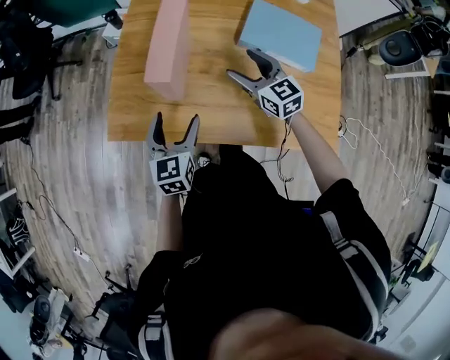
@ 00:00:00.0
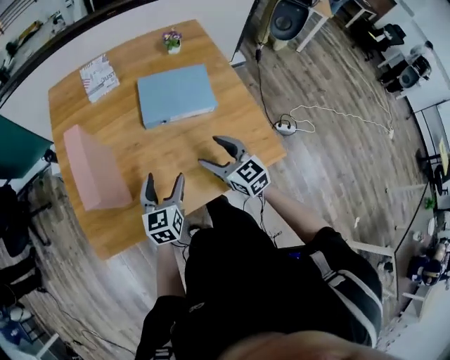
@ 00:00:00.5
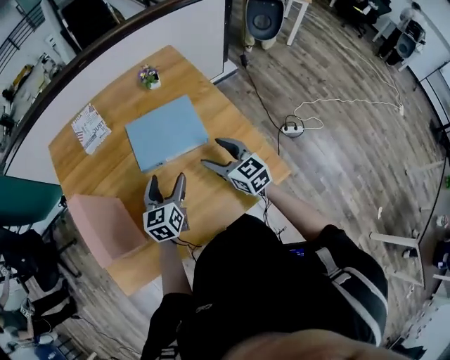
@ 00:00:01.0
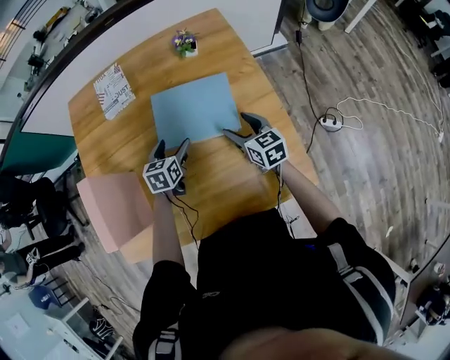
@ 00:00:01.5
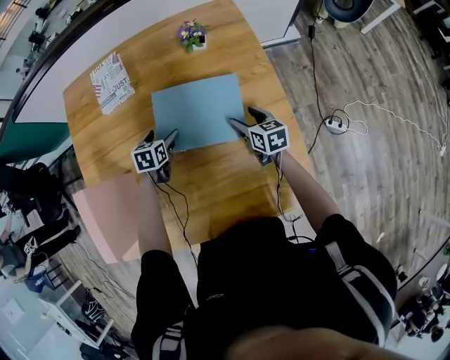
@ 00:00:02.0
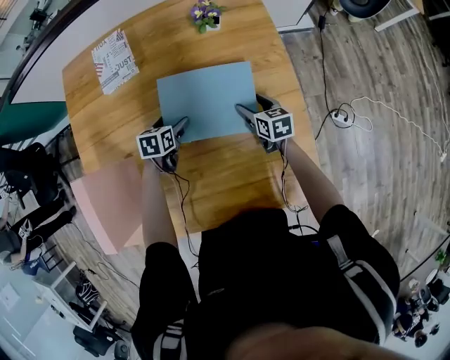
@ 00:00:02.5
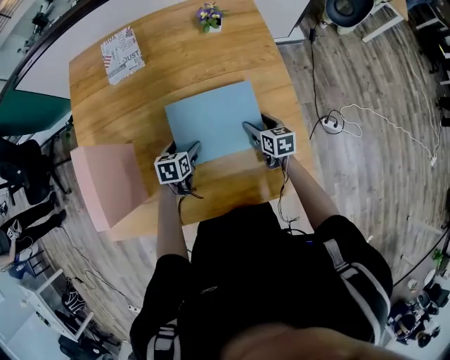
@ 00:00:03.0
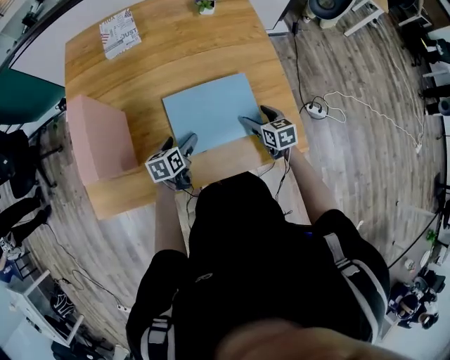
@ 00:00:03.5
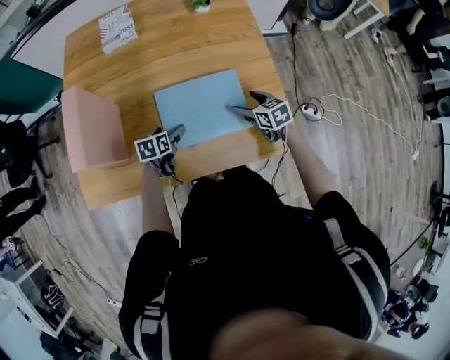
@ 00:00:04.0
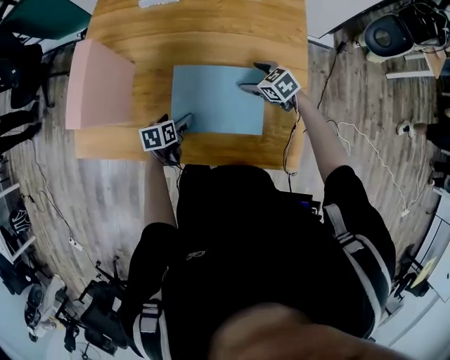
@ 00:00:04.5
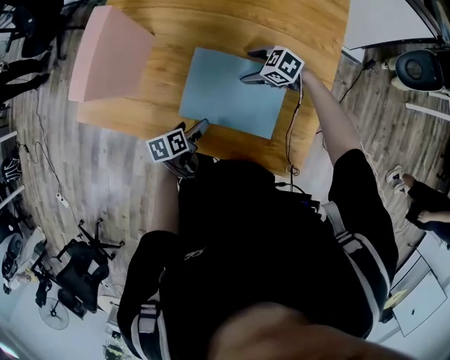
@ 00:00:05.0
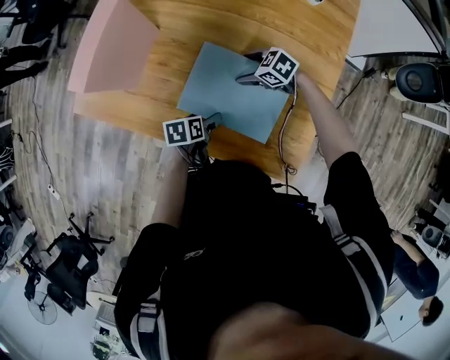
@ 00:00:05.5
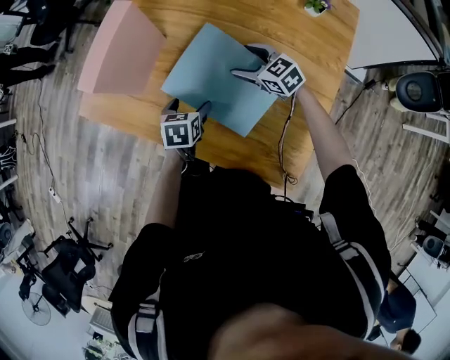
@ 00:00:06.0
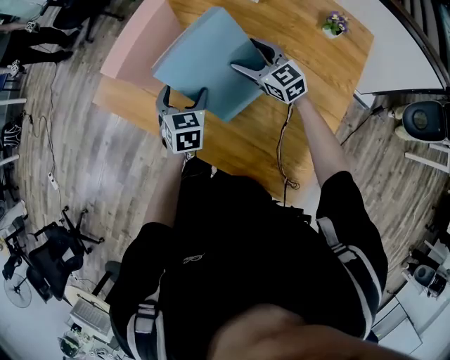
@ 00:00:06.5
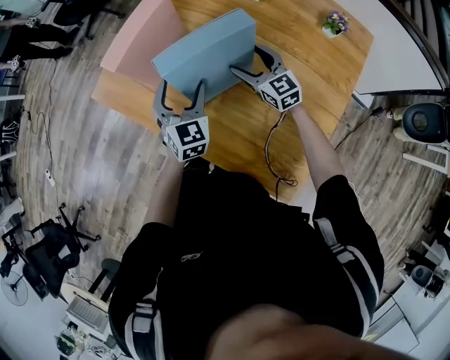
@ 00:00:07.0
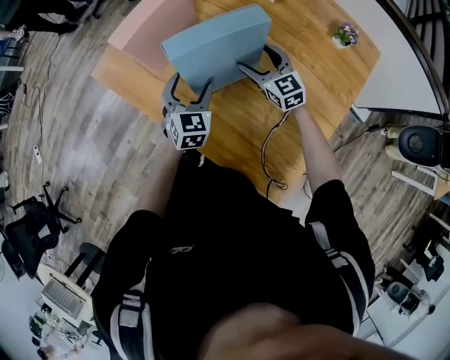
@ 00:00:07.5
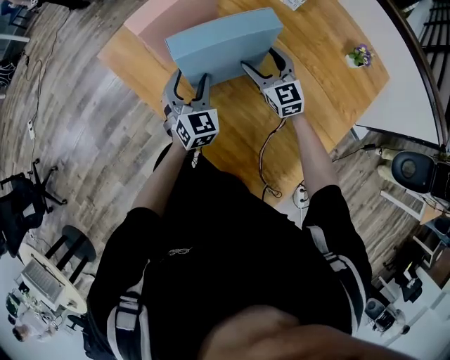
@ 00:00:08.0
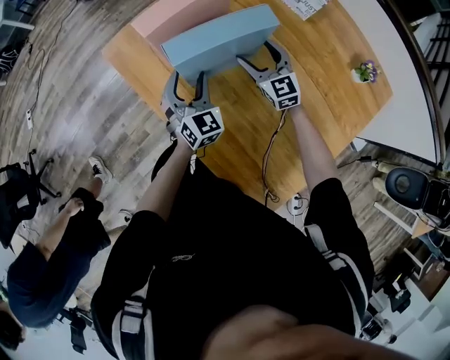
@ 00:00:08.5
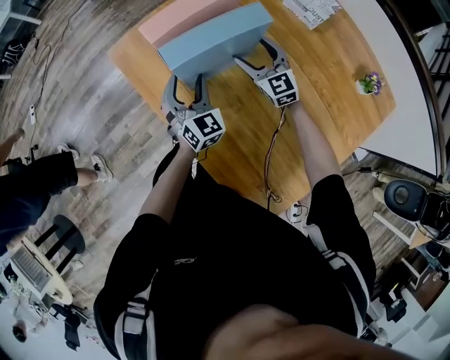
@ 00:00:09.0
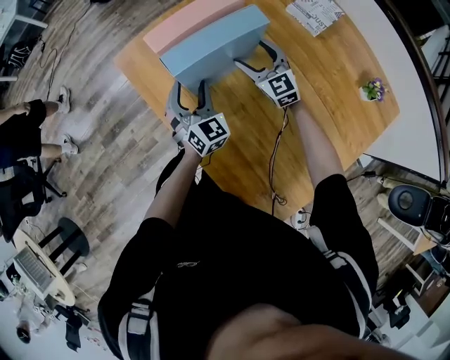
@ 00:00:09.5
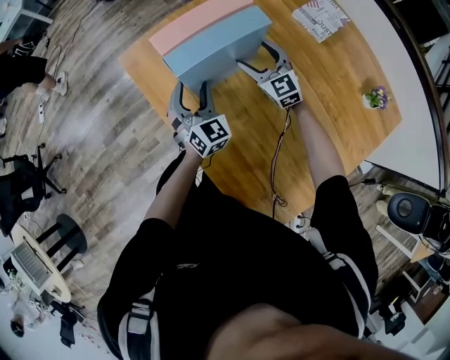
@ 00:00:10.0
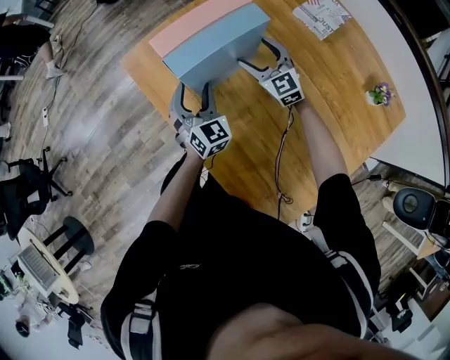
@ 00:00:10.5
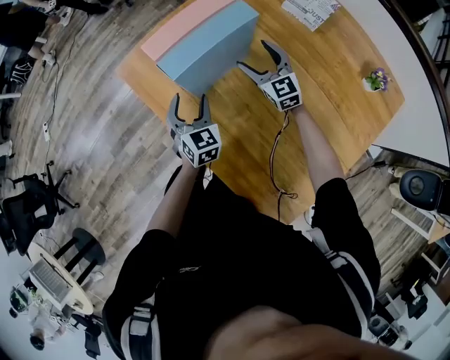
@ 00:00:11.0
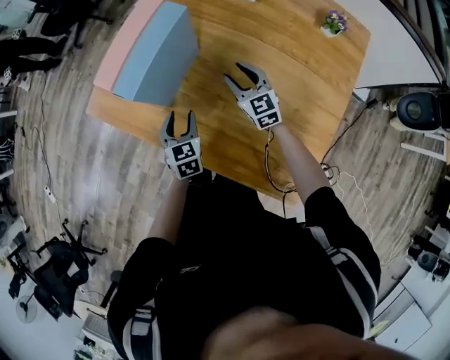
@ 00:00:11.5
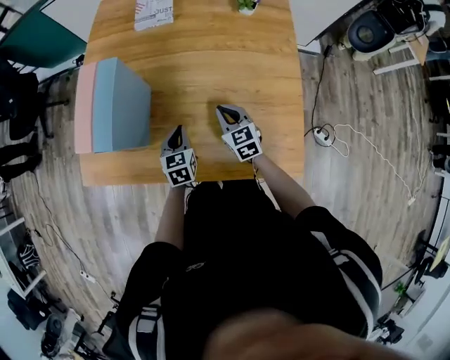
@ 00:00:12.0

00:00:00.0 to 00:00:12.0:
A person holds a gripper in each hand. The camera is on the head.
00:00:00.0 to 00:00:02.0: The right gripper shifts by about 40 cm, and turns by roughly 40 degrees, while the left gripper shifts by roughly 50 cm, and points its fingers roughly 30 degrees further downward.
00:00:02.0 to 00:00:04.0: Both grippers travel together backward, some 20 cm. The right gripper swivels roughly 20 degrees.
00:00:04.0 to 00:00:06.0: The right gripper goes downward and returns, approximately 5 cm each way, and swivels roughly 60 degrees, while the left gripper turns by some 30 degrees.
00:00:06.0 to 00:00:08.0: The right gripper heads to the left and forward, covering some 10 cm, and changes its angle by approximately 20 degrees, while the left gripper shifts roughly 10 cm upward, to the left and forward, and tilts its fingers about 30 degrees upward.
00:00:08.0 to 00:00:10.0: The left gripper travels forward by some 5 cm. The right gripper travels forward by about 15 cm.
00:00:10.0 to 00:00:12.0: The right gripper shifts by some 30 cm, turns by some 70 degrees, and closes its fingers. Meanwhile the left gripper ends up roughly 15 cm from where it was, rotates roughly 60 degrees, and closes.

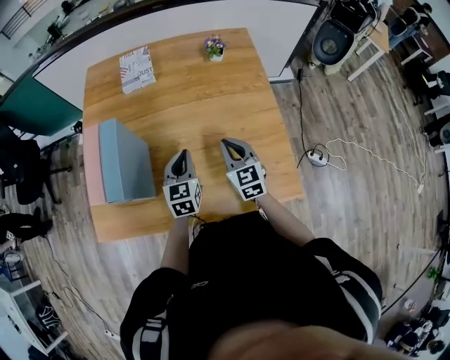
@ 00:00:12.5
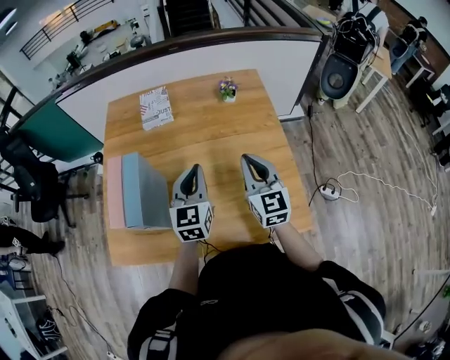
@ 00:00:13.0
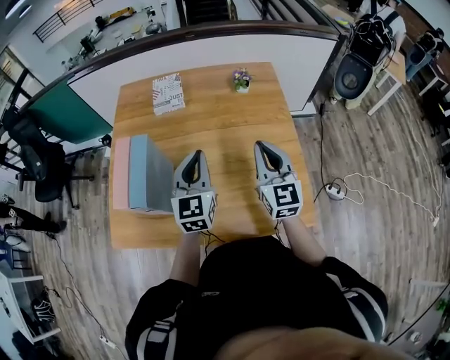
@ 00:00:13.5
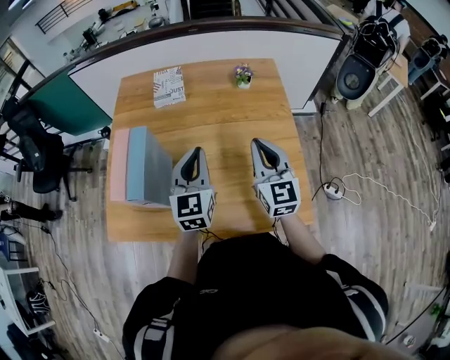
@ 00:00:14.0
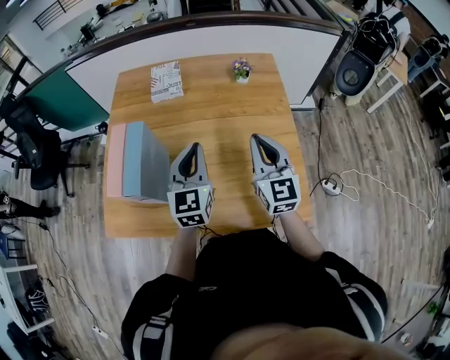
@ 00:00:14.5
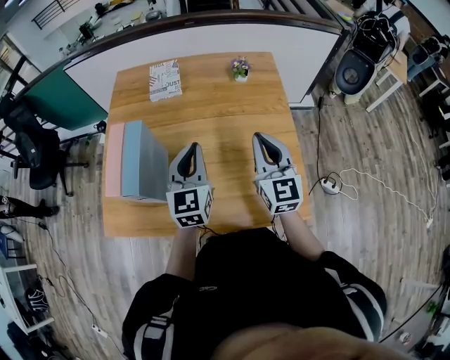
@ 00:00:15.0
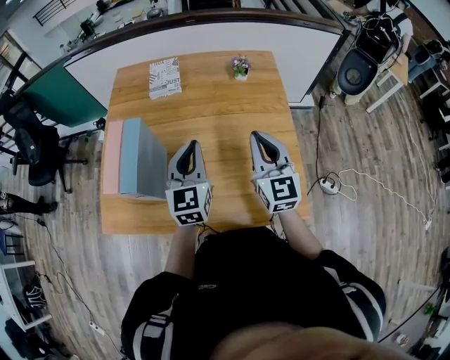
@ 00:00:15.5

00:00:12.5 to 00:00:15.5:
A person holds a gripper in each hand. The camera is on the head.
00:00:12.5 to 00:00:14.0: The two grippers go roughly 15 cm upward.
00:00:14.0 to 00:00:15.5: Both grippers stay put.

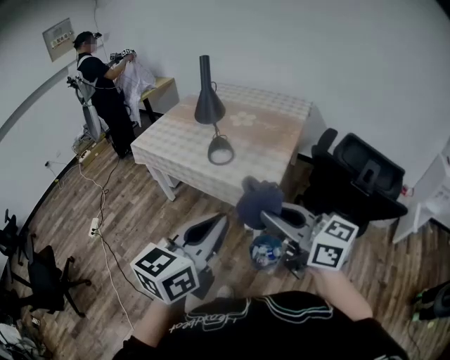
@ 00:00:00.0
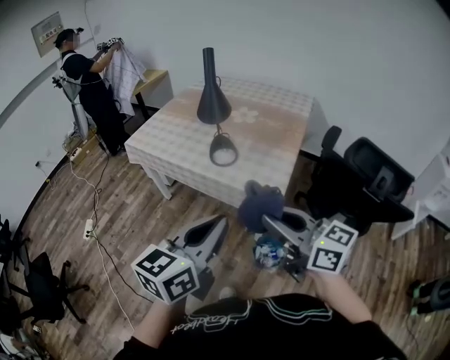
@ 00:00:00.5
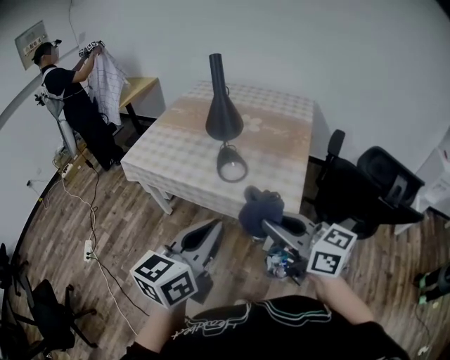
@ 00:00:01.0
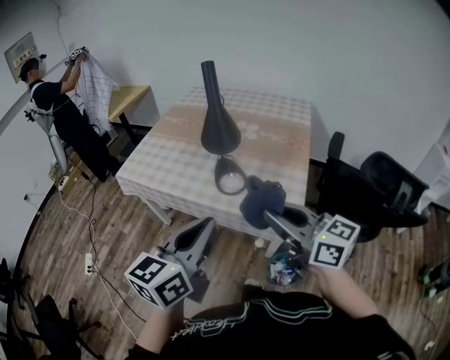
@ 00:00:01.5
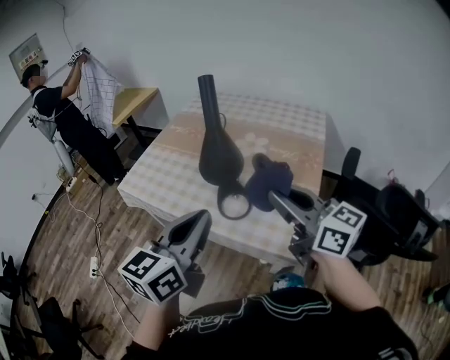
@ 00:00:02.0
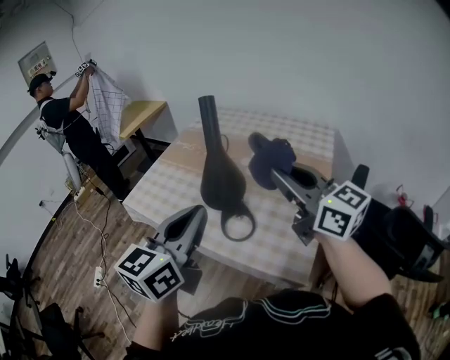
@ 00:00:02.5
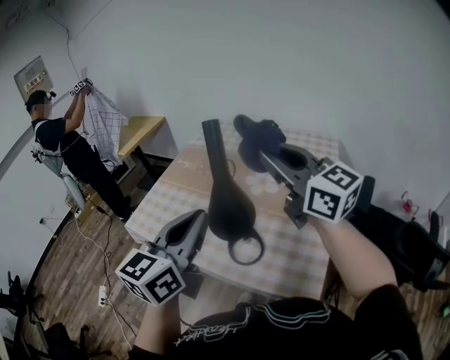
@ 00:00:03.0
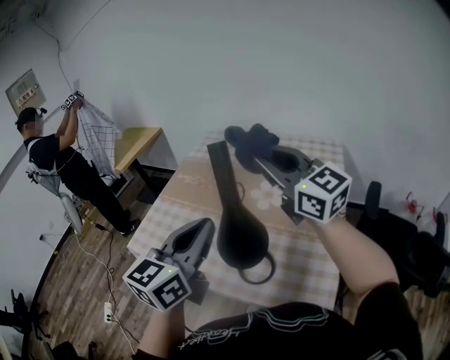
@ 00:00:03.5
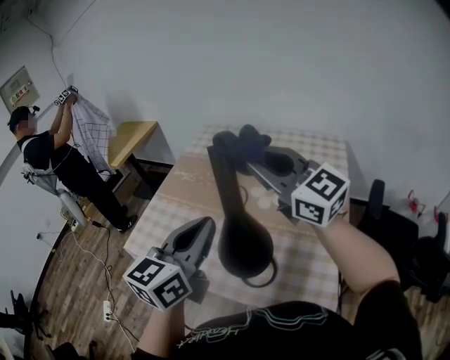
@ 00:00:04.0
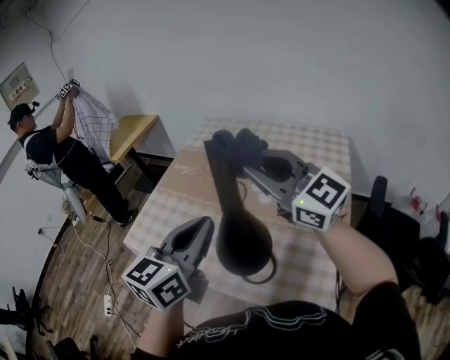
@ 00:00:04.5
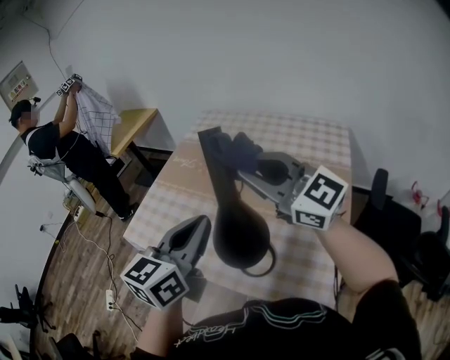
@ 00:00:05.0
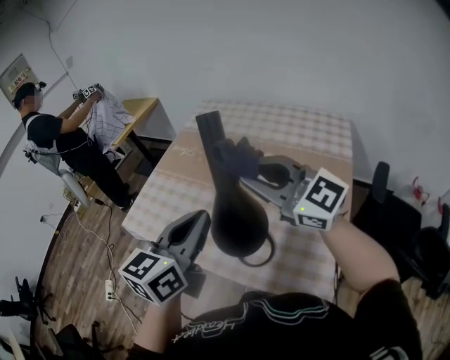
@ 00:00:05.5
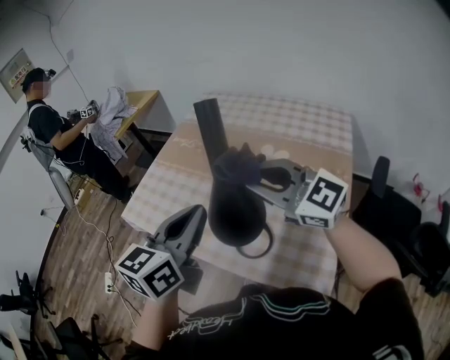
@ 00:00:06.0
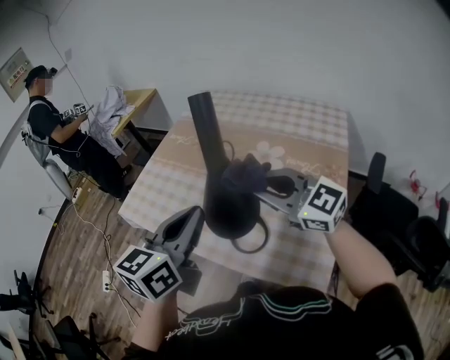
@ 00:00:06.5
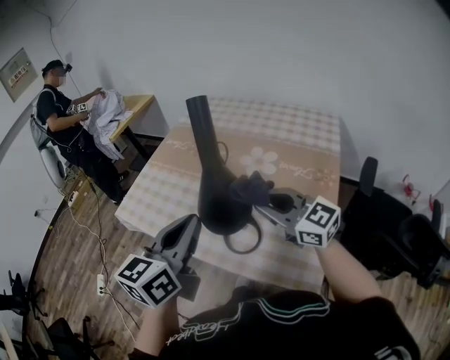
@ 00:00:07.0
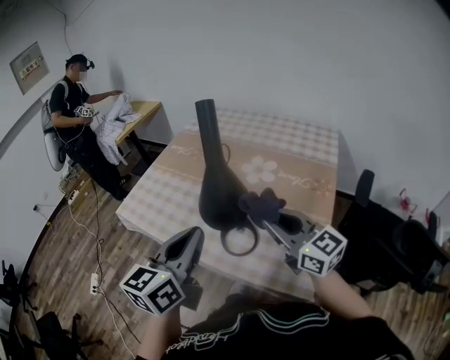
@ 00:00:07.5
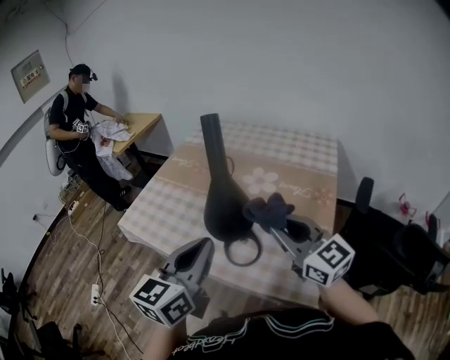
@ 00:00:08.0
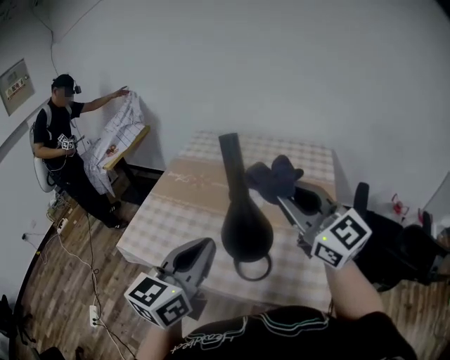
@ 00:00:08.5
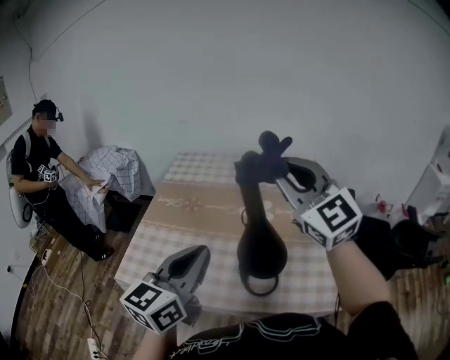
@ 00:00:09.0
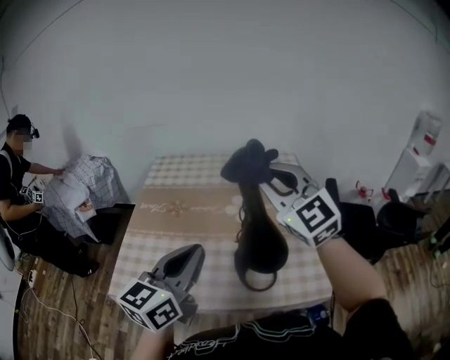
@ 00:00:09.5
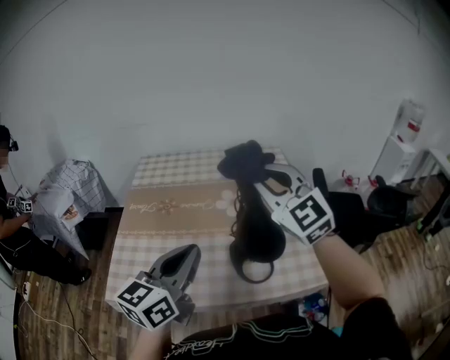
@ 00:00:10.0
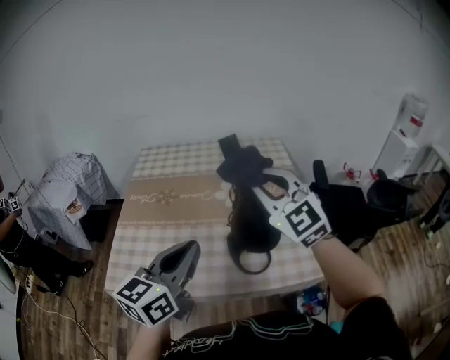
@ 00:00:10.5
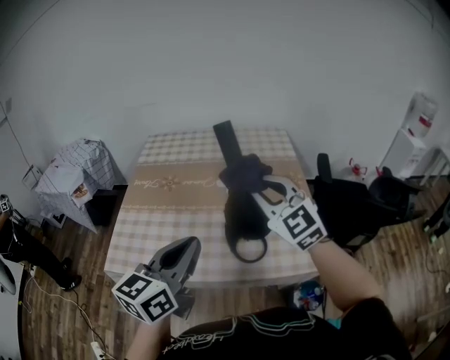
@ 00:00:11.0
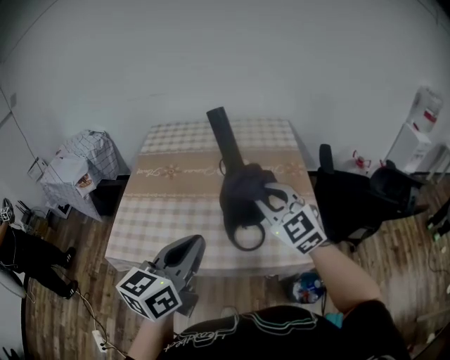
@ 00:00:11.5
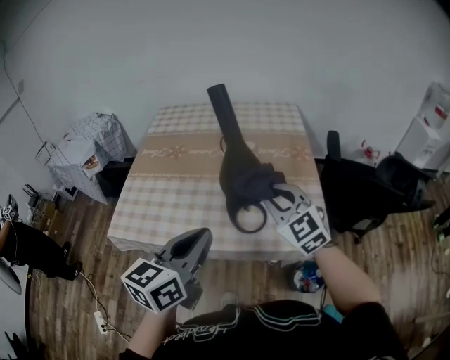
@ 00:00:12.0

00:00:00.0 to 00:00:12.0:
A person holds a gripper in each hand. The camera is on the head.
00:00:00.0 to 00:00:02.0: The two grippers go roughly 35 cm forward.
00:00:02.0 to 00:00:04.0: Both grippers travel together forward, approximately 25 cm. The right gripper swivels some 30 degrees.
00:00:04.0 to 00:00:06.0: The right gripper moves downward and backward, some 15 cm. The left gripper ends up approximately 5 cm from where it was.
00:00:06.0 to 00:00:08.0: The left gripper moves backward, about 10 cm. The right gripper goes approximately 15 cm backward and to the right, and rotates roughly 20 degrees.
00:00:08.0 to 00:00:10.0: The left gripper shifts by approximately 20 cm, and changes its angle by approximately 30 degrees, while the right gripper ends up roughly 25 cm from where it was, and swivels roughly 50 degrees.
00:00:10.0 to 00:00:12.0: The right gripper shifts roughly 20 cm downward, backward and to the right, while the left gripper shifts about 15 cm backward and to the right.
